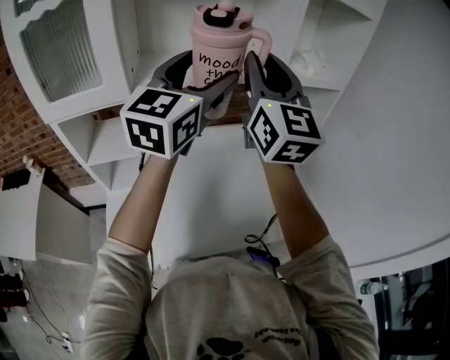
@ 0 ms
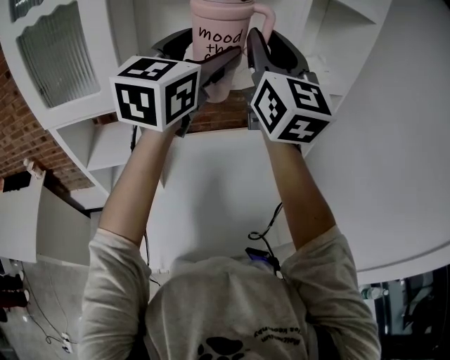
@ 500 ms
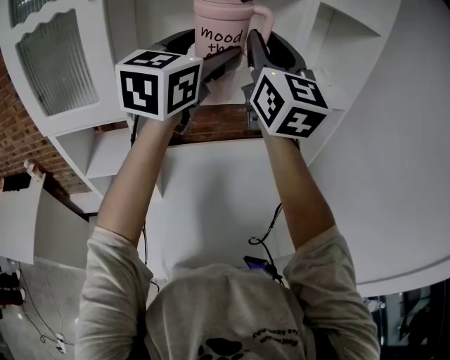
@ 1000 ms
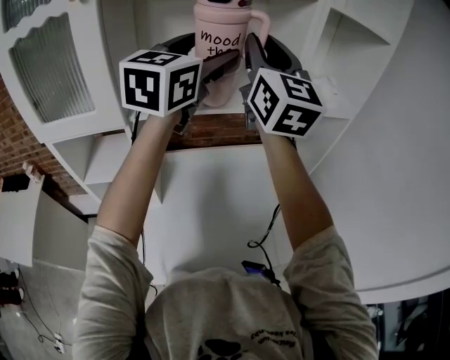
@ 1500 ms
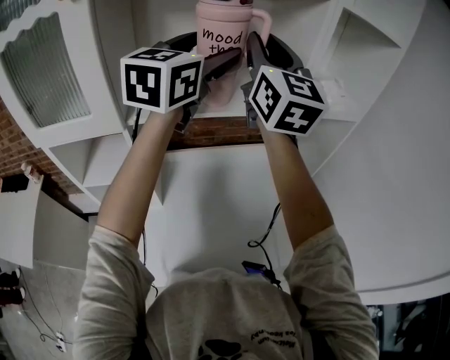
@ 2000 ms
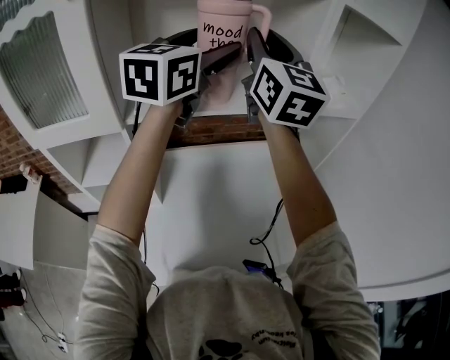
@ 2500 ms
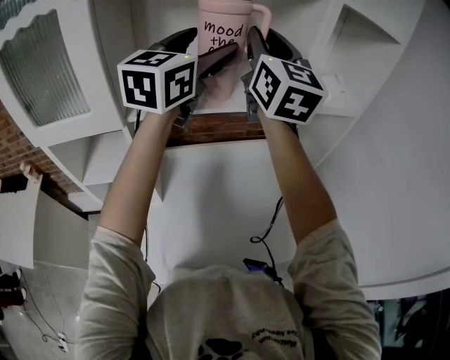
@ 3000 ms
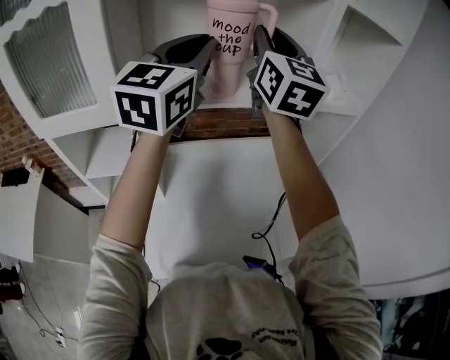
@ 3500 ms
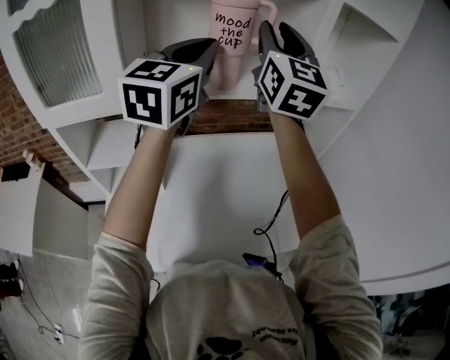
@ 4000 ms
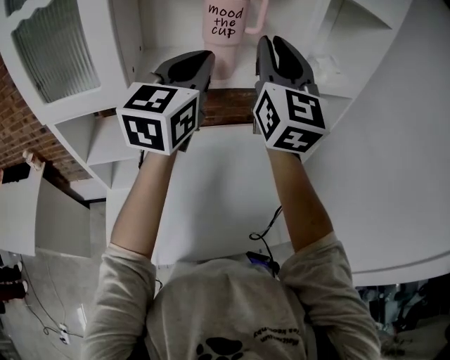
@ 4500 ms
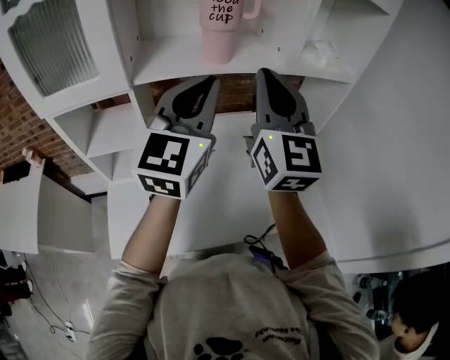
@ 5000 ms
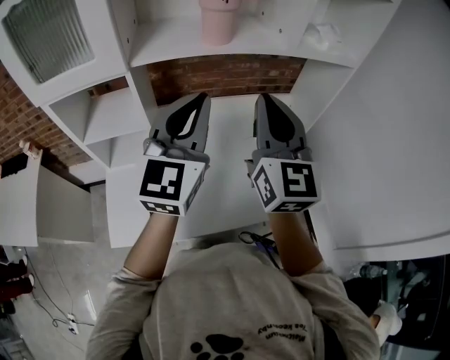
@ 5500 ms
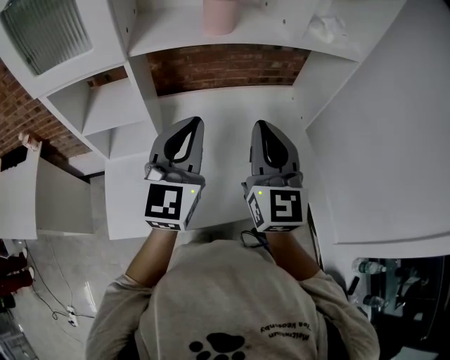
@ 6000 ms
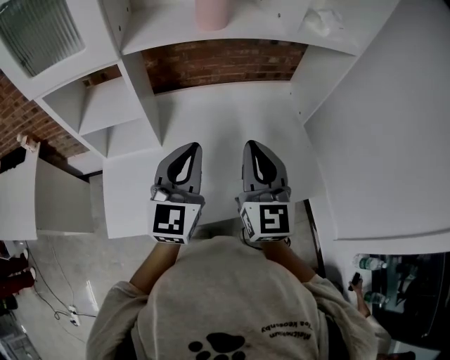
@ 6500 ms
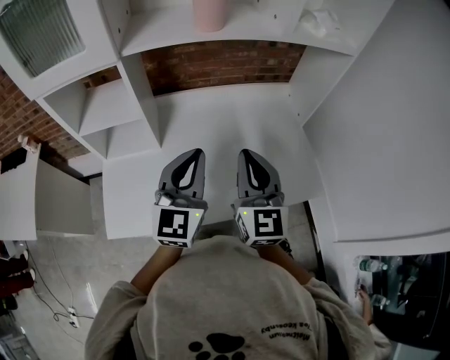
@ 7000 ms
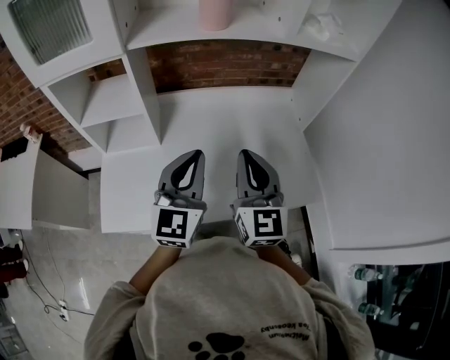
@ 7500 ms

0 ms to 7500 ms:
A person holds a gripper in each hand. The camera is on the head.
0 ms to 2000 ms: Both grippers move forward, approximately 15 cm.
2000 ms to 4000 ms: The left gripper travels backward by about 5 cm, and closes.
4000 ms to 5500 ms: The right gripper goes about 25 cm downward and backward, and closes its fingers, while the left gripper moves backward and downward, roughly 20 cm.
5500 ms to 7500 ms: Both grippers travel together downward and backward, some 15 cm.

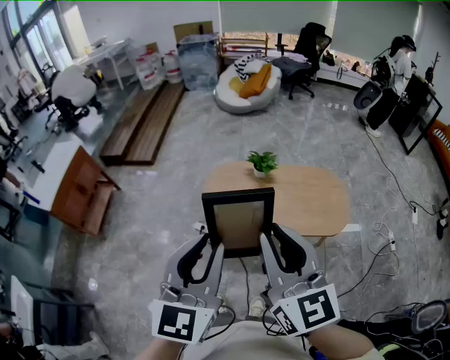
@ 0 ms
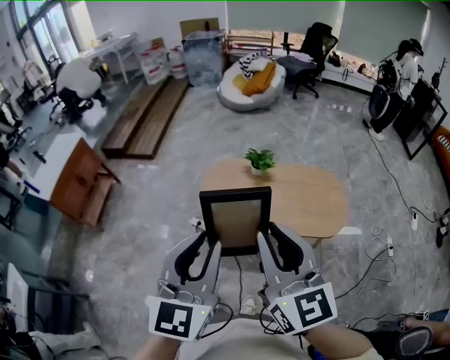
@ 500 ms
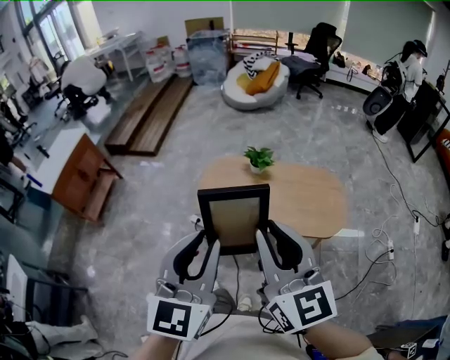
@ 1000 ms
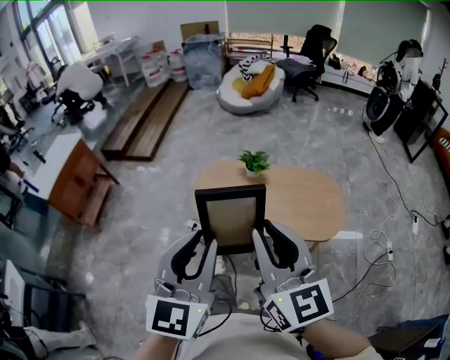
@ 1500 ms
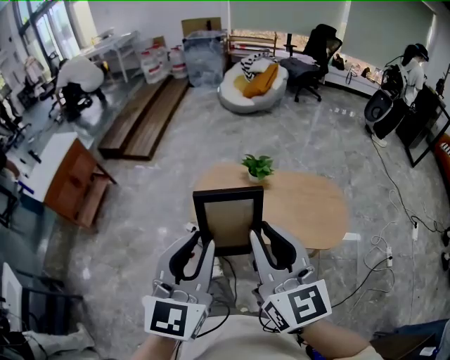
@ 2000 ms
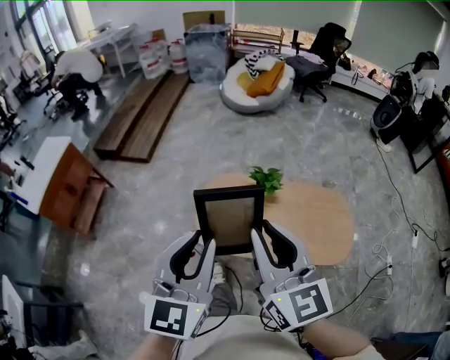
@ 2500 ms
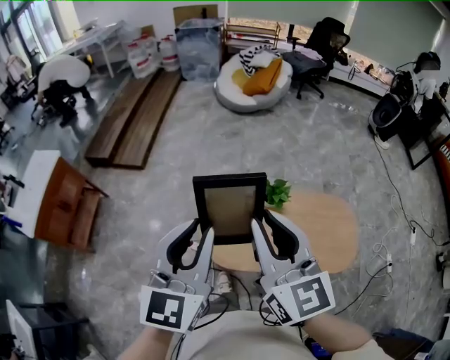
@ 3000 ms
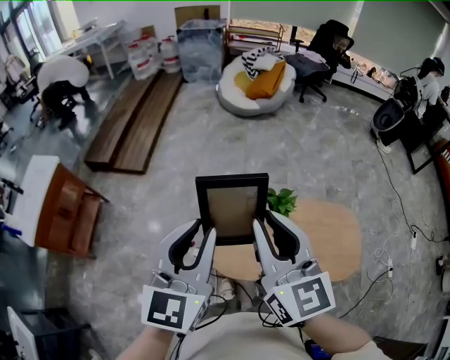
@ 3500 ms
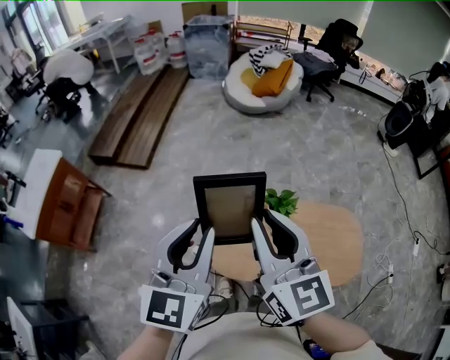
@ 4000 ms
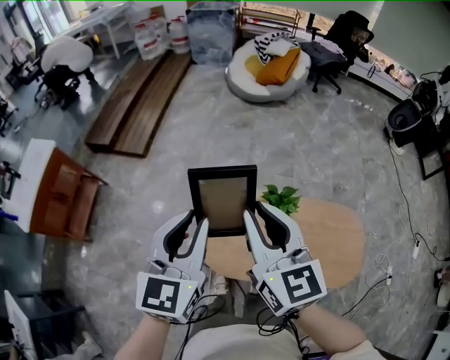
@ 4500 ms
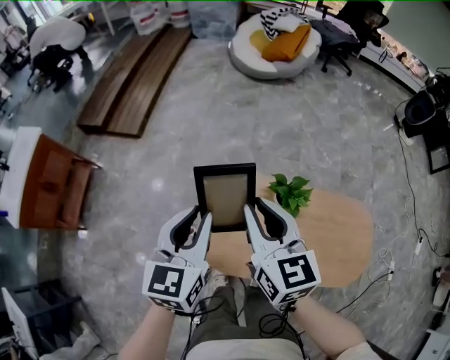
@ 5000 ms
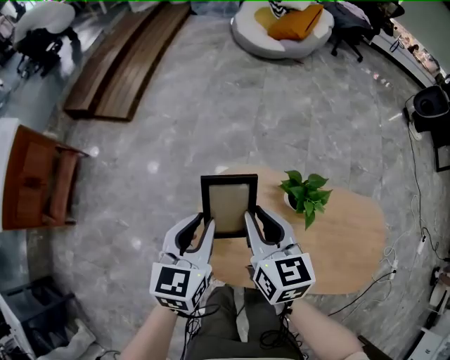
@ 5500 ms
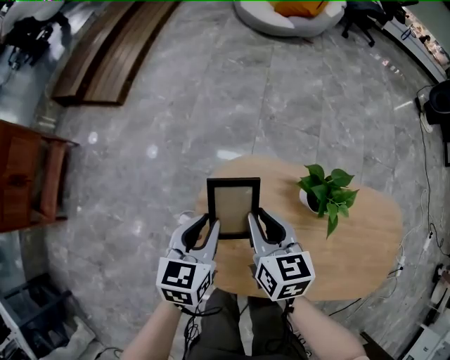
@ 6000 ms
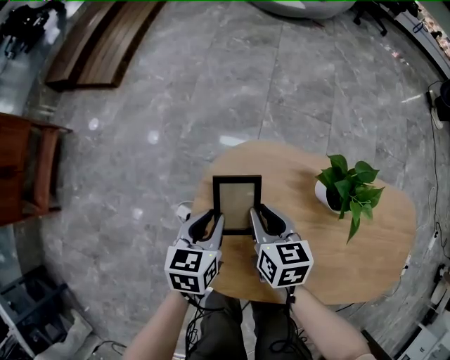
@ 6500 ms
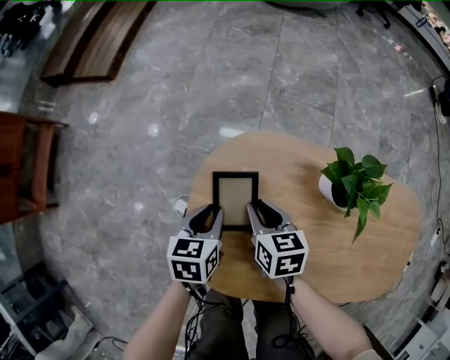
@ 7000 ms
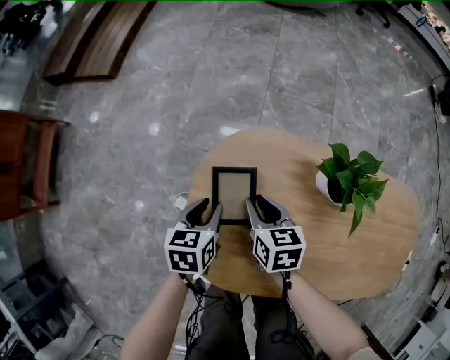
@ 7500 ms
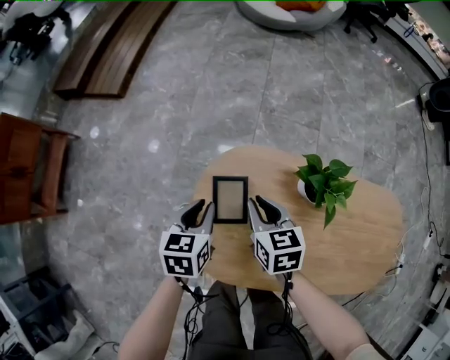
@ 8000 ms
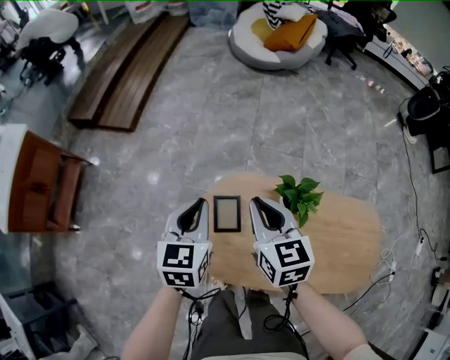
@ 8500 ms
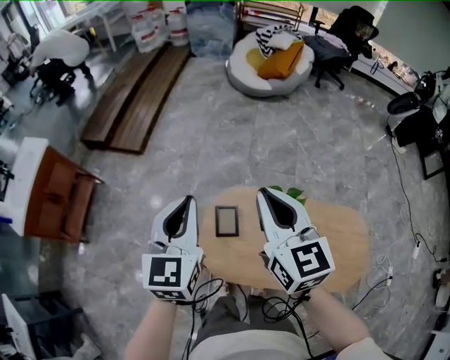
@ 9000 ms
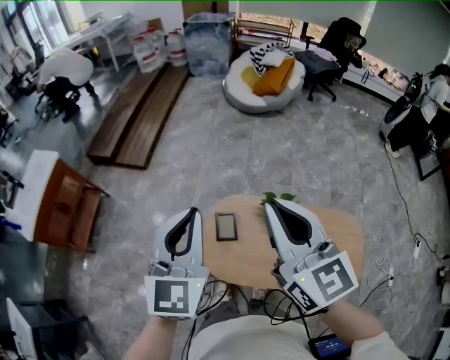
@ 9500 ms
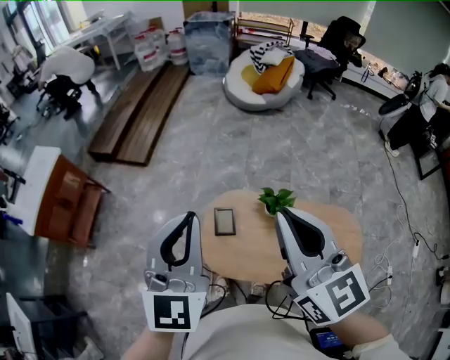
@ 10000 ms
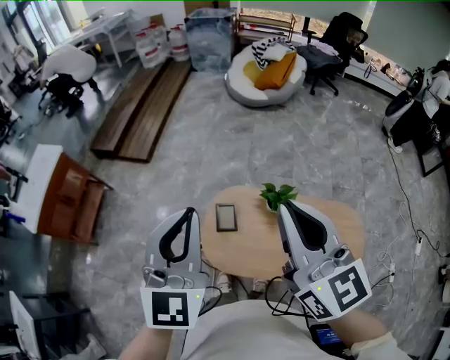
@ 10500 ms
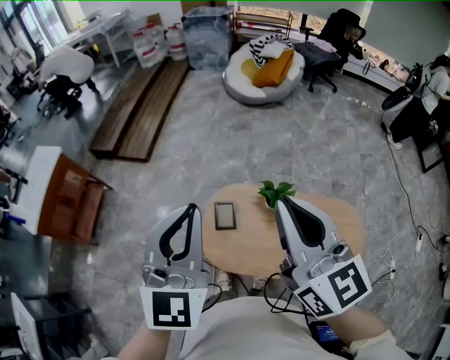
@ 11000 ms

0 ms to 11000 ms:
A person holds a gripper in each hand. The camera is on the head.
0 ms to 2000 ms: Both grippers move forward, about 5 cm.
2000 ms to 3500 ms: The grippers both shift forward by approximately 30 cm.
3500 ms to 5500 ms: The left gripper heads downward, covering approximately 35 cm, and changes its angle by roughly 30 degrees; the right gripper is displaced downward and forward by roughly 40 cm, and swivels approximately 30 degrees.
5500 ms to 7500 ms: Both grippers move downward, some 30 cm. The right gripper rotates some 20 degrees. Meanwhile the left gripper swivels roughly 30 degrees.
7500 ms to 9000 ms: The two grippers go approximately 50 cm upward. The right gripper points its fingers about 40 degrees further upward, and closes its fingers. Meanwhile the left gripper tips its fingers upward by roughly 40 degrees, and closes up.
9000 ms to 11000 ms: The two grippers go some 20 cm upward and backward.

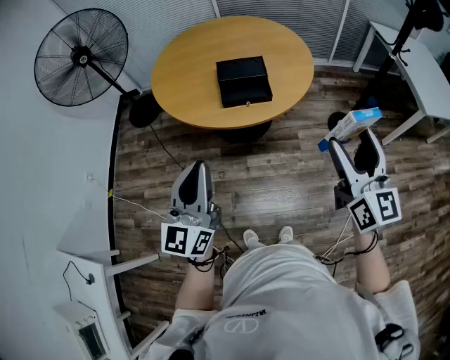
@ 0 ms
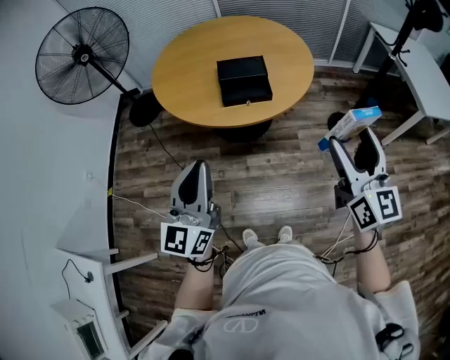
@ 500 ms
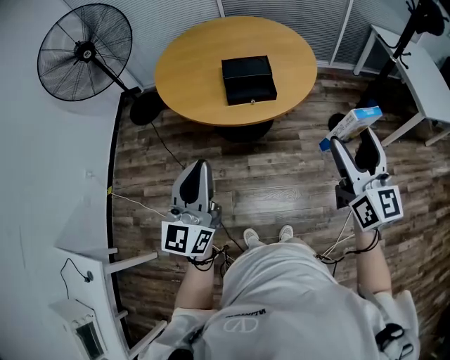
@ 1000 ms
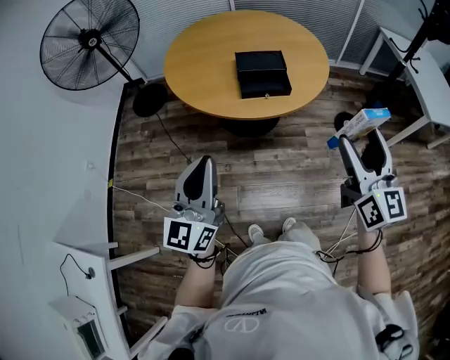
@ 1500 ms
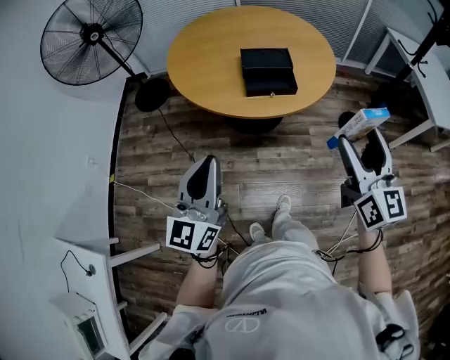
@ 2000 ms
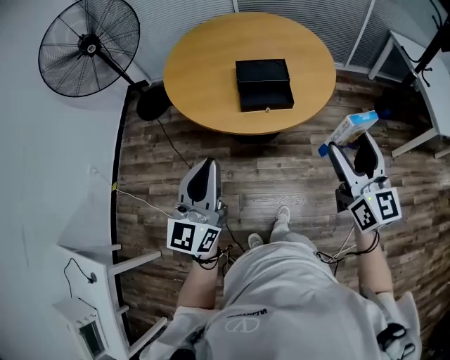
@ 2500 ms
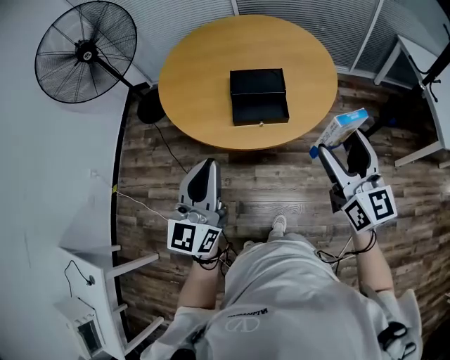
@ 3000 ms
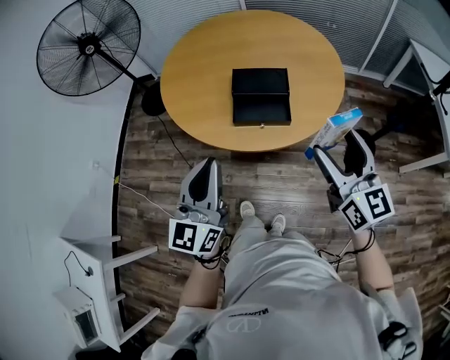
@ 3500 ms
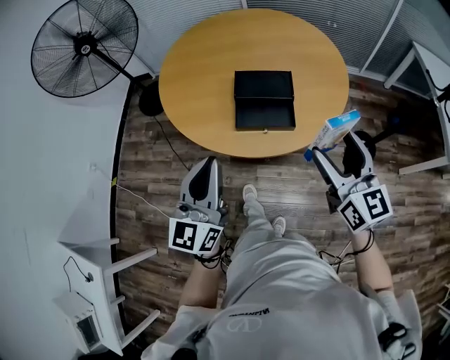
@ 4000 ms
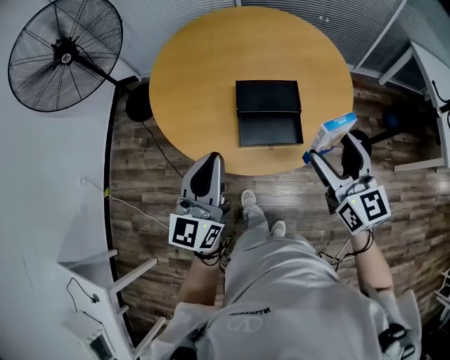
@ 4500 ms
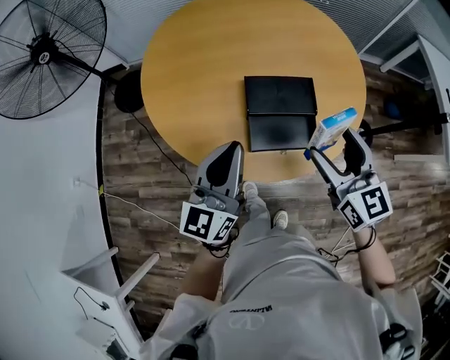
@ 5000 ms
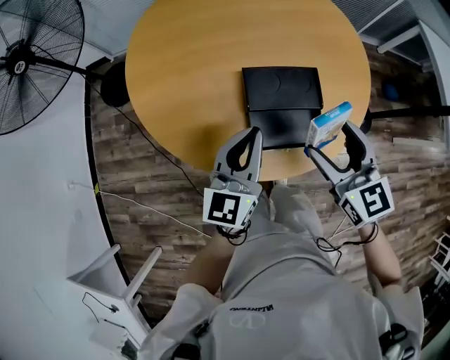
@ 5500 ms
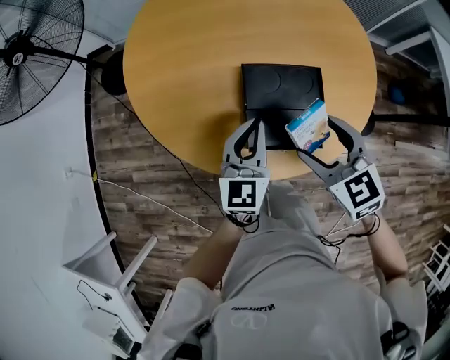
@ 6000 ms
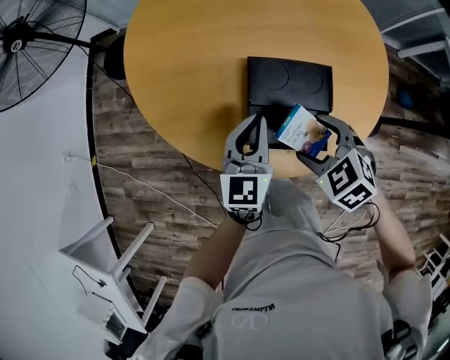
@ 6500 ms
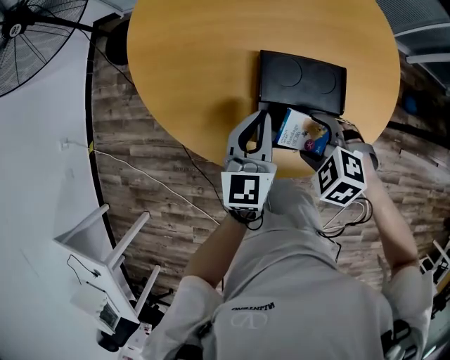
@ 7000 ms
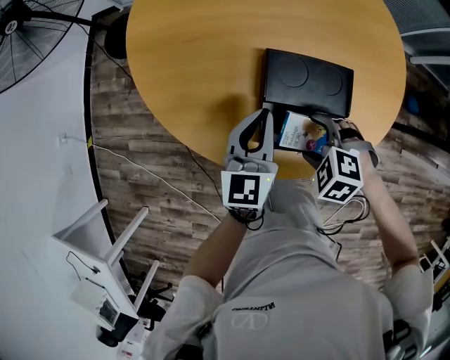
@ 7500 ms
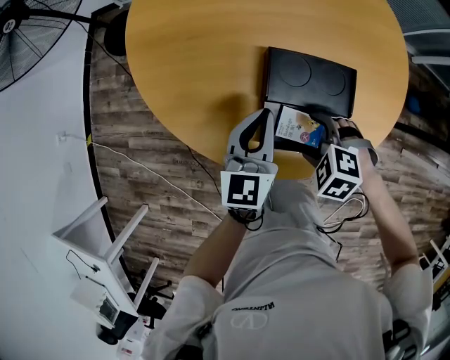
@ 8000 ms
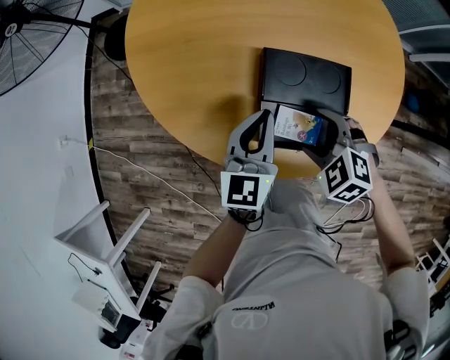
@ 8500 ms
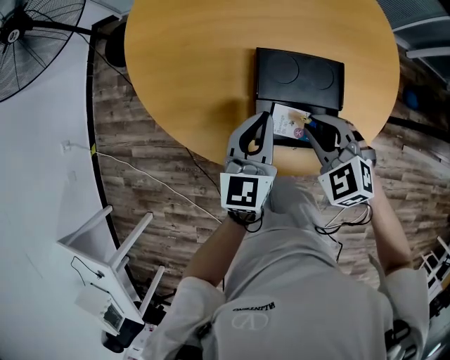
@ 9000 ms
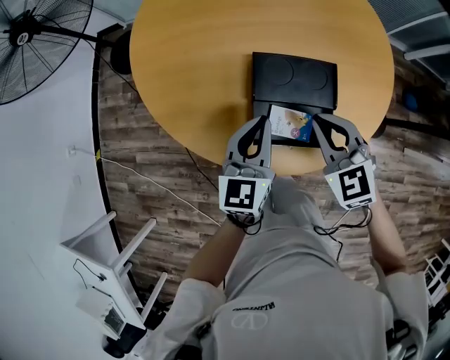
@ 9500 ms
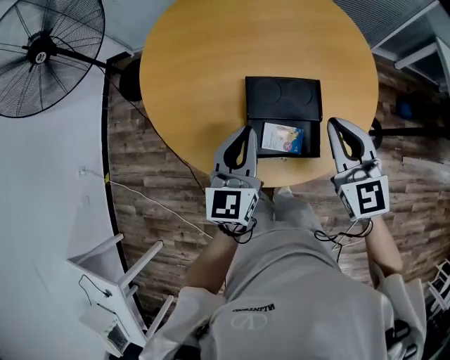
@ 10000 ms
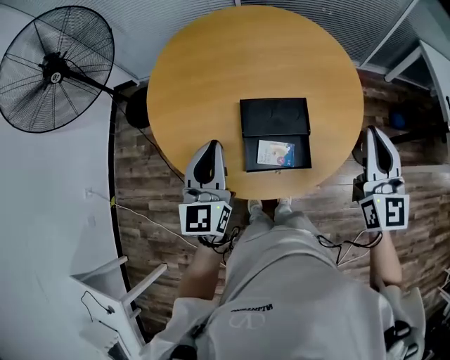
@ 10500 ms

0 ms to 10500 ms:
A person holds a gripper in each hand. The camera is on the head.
0 ms to 2000 ms: Both grippers travel together to the left, some 10 cm.
2000 ms to 4000 ms: The left gripper goes approximately 25 cm forward and to the right; the right gripper shifts roughly 25 cm forward.
4000 ms to 6500 ms: The left gripper heads forward and downward, covering about 35 cm, and turns by approximately 20 degrees. Meanwhile the right gripper moves downward, forward and to the left, some 35 cm, and tilts its fingers about 60 degrees downward.
6500 ms to 8500 ms: The right gripper travels downward by some 5 cm.
8500 ms to 10500 ms: The left gripper is displaced upward by some 15 cm; the right gripper is displaced upward and to the right by roughly 35 cm, points its fingers roughly 60 degrees further upward, and closes its fingers.
